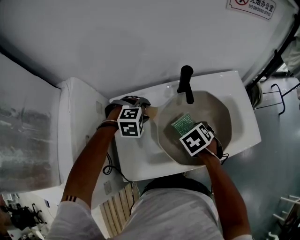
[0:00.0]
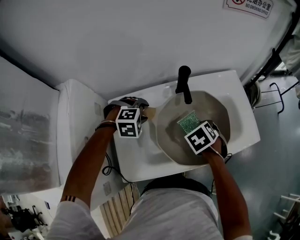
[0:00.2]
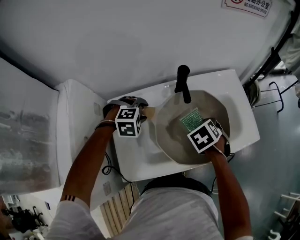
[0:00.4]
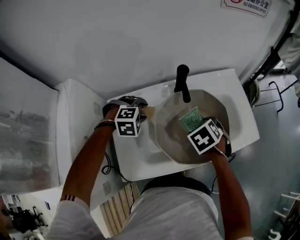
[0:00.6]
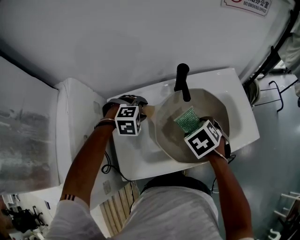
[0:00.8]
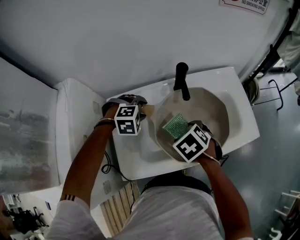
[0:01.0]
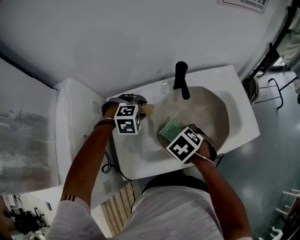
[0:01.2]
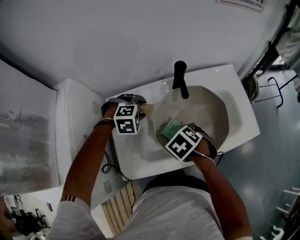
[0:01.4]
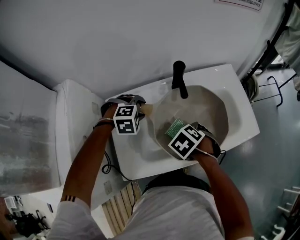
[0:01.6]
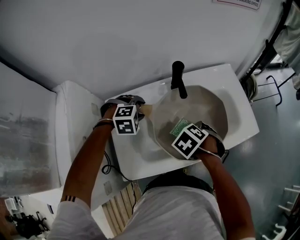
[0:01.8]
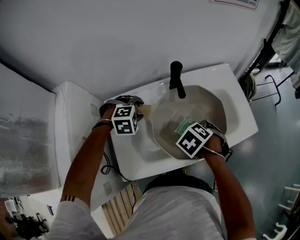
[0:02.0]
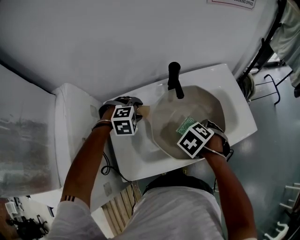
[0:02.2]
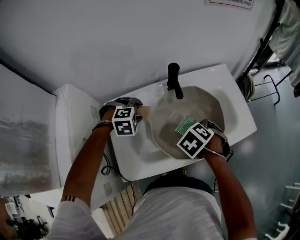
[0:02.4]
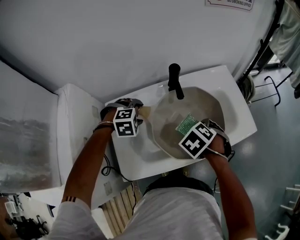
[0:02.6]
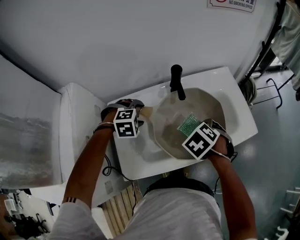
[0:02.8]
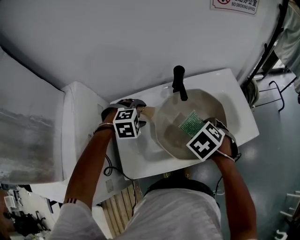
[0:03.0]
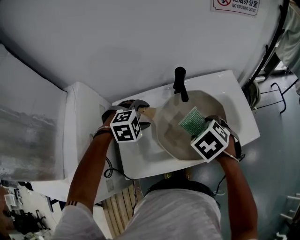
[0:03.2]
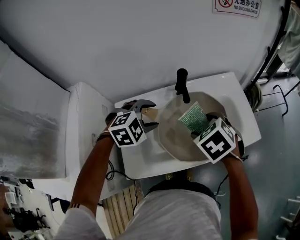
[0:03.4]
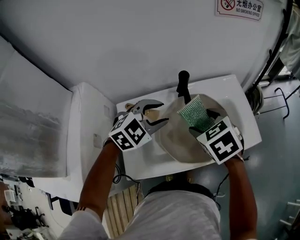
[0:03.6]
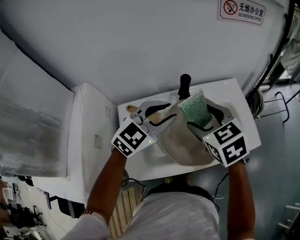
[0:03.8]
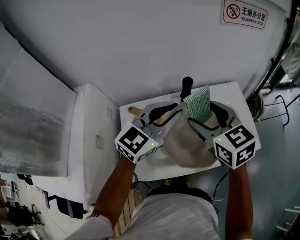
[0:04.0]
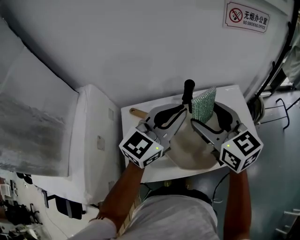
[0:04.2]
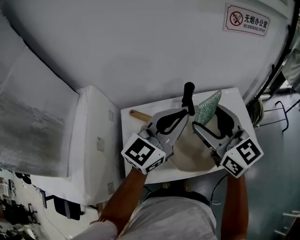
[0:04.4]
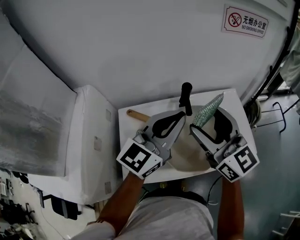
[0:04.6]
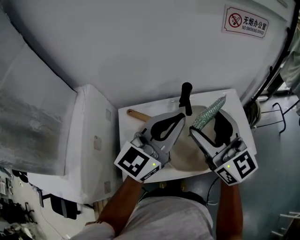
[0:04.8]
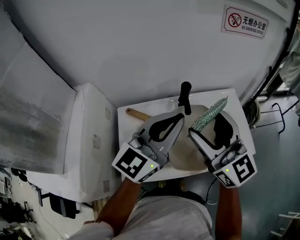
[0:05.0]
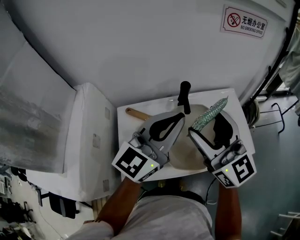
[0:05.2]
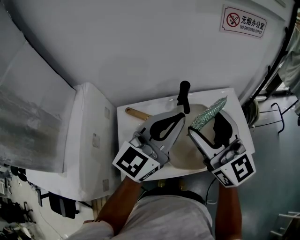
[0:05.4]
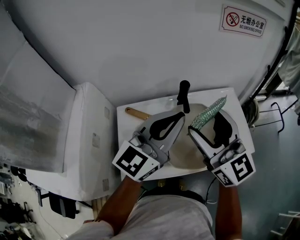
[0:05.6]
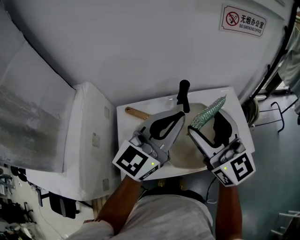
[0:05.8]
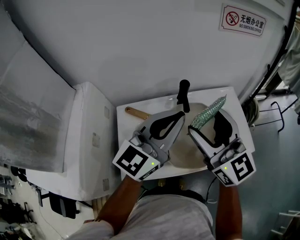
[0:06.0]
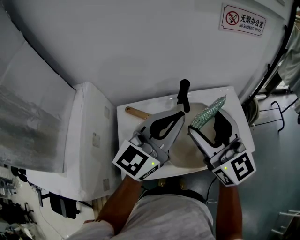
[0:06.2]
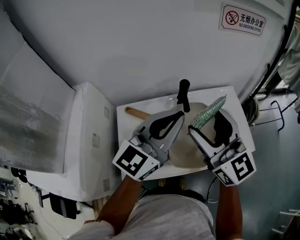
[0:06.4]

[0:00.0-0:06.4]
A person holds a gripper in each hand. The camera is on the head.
0.0 to 1.6 s: There are only small adjustments of the grippers.
1.6 to 3.2 s: The left gripper is displaced upward by some 5 cm. The right gripper goes some 10 cm upward.
3.2 to 4.8 s: The right gripper goes about 20 cm upward, and tips its fingers upward by some 70 degrees. The left gripper is displaced upward and to the right by about 25 cm, tips its fingers upward by approximately 70 degrees, and closes its fingers.
4.8 to 6.4 s: The grippers stay close to where they were, moving slightly.

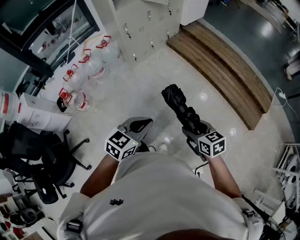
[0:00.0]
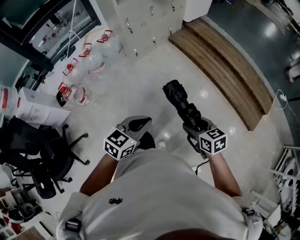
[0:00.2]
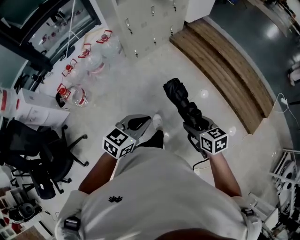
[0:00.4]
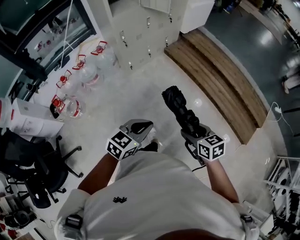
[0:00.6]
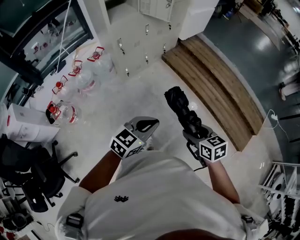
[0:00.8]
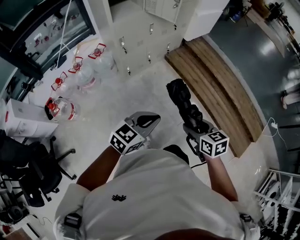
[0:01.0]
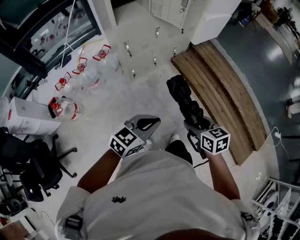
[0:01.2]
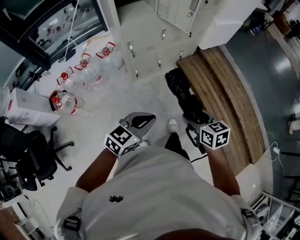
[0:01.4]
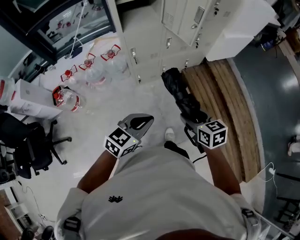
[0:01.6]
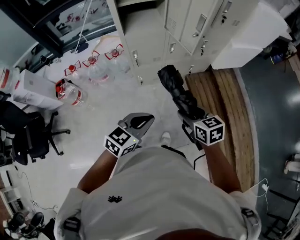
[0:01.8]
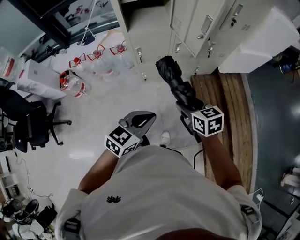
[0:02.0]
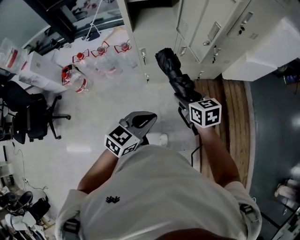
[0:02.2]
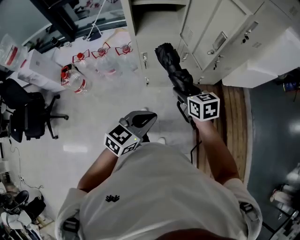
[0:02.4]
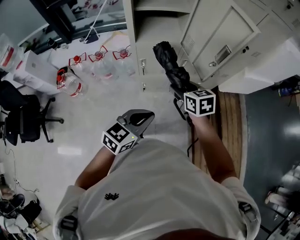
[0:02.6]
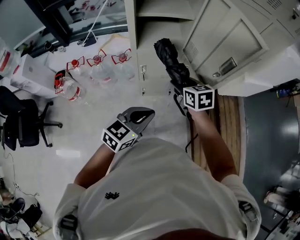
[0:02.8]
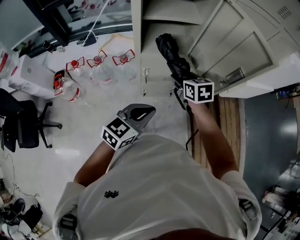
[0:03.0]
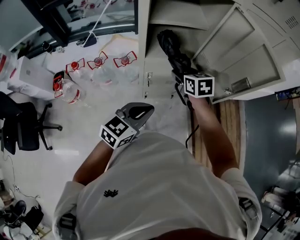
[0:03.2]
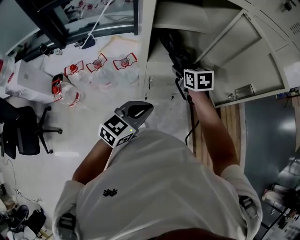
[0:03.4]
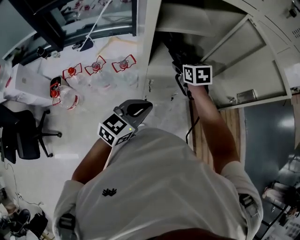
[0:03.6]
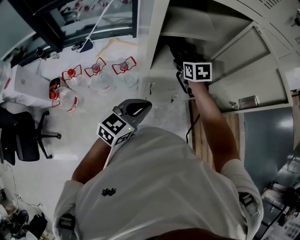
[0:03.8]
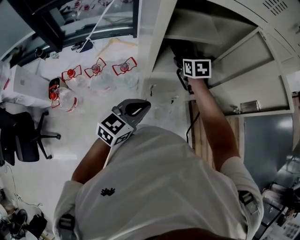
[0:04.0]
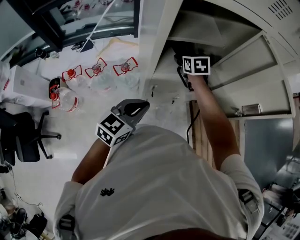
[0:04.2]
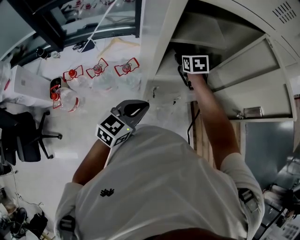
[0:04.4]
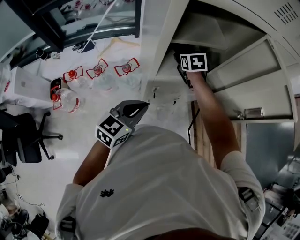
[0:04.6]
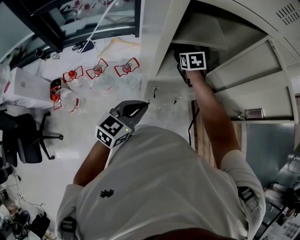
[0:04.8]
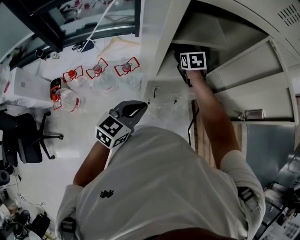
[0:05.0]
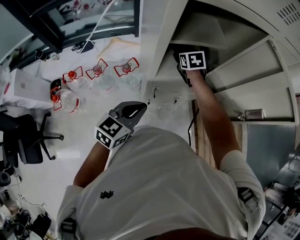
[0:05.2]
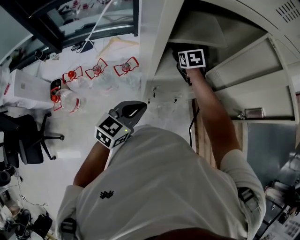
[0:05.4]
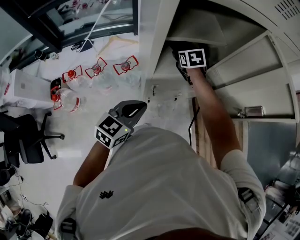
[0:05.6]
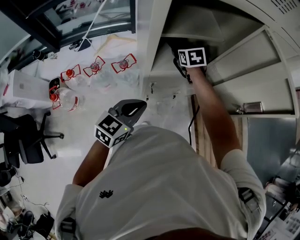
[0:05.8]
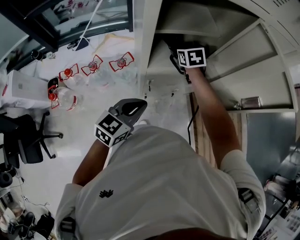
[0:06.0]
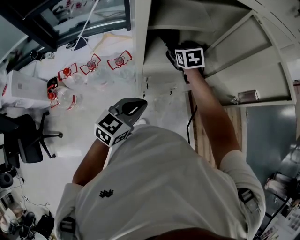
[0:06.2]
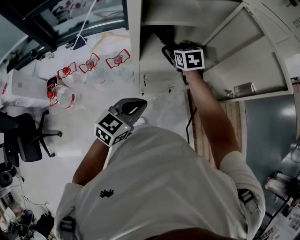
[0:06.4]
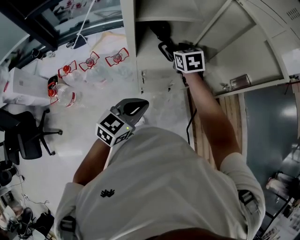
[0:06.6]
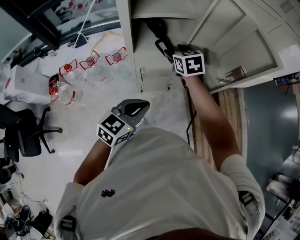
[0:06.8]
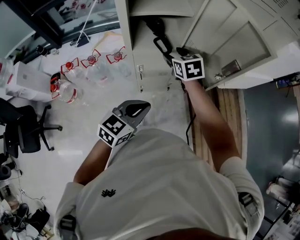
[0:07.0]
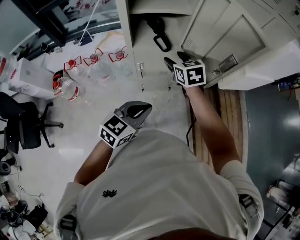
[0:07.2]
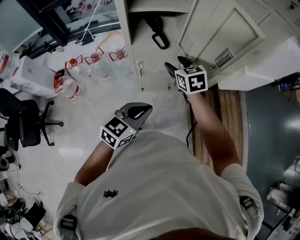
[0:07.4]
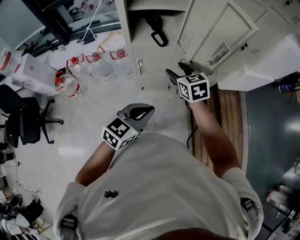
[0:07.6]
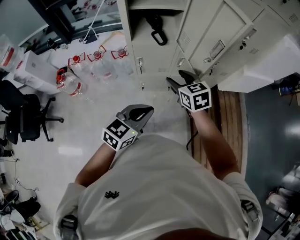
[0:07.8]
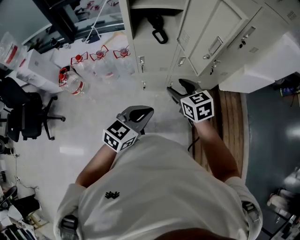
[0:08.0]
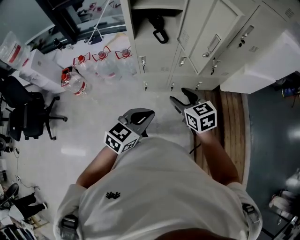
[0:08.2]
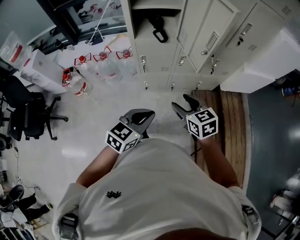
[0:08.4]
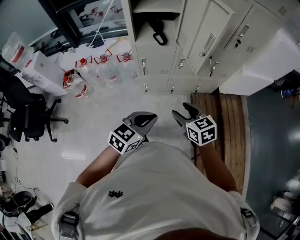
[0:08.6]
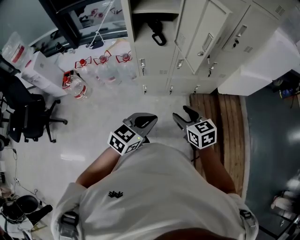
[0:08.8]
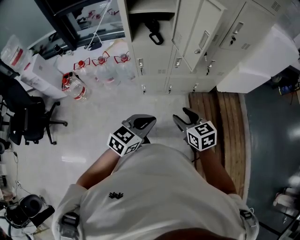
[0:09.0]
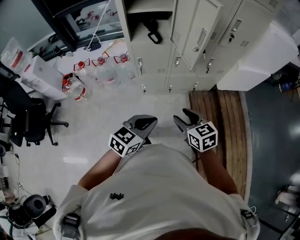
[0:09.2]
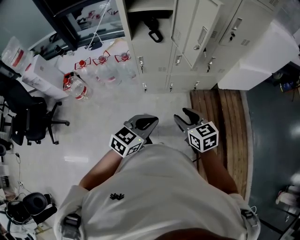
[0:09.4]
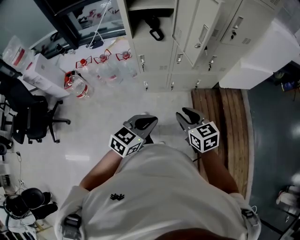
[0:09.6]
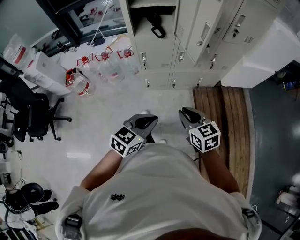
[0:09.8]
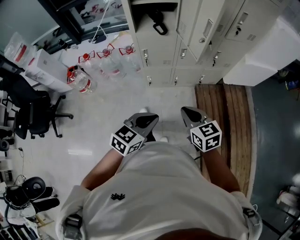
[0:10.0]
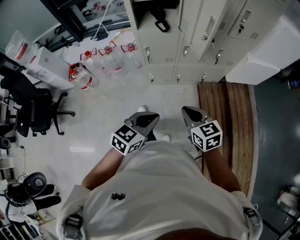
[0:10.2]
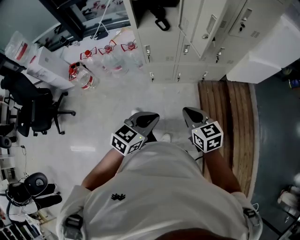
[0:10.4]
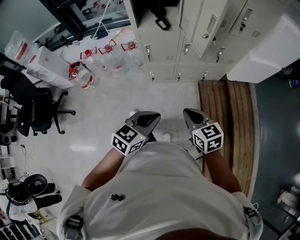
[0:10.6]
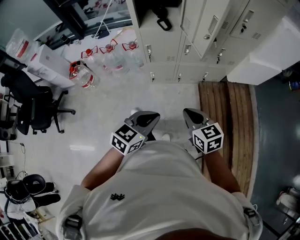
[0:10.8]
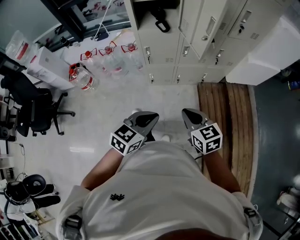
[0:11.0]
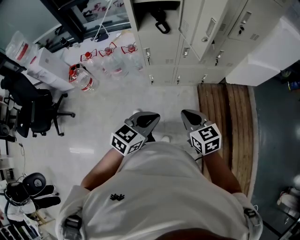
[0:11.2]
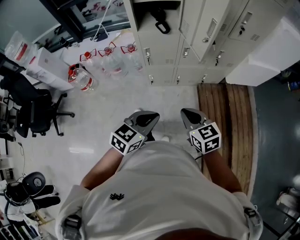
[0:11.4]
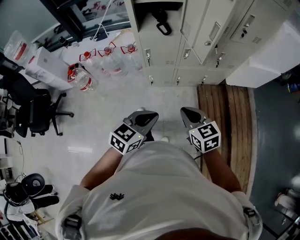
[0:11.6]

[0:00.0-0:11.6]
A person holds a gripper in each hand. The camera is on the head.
0.0 to 1.4 s: Both grippers move forward, approximately 40 cm.
1.4 to 2.8 s: The right gripper shifts approximately 40 cm forward, and swivels some 20 degrees. The left gripper heads forward, covering approximately 25 cm, and swivels approximately 20 degrees.
2.8 to 4.4 s: The right gripper shifts some 30 cm forward and to the left; the left gripper travels to the left and forward by approximately 25 cm.
4.4 to 5.8 s: The grippers stay close to where they were, moving slightly.
5.8 to 7.2 s: The left gripper heads to the right and backward, covering roughly 20 cm; the right gripper shifts about 20 cm backward and to the right.
7.2 to 8.8 s: The left gripper is displaced backward and to the right by approximately 15 cm; the right gripper heads backward, covering approximately 30 cm.
8.8 to 10.2 s: The left gripper ends up about 5 cm from where it was. Meanwhile the right gripper heads backward, covering some 5 cm, and closes.
10.2 to 11.6 s: The grippers stay close to where they were, moving slightly.

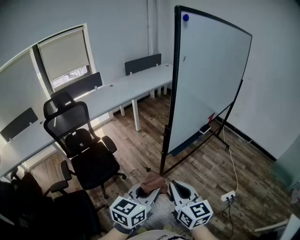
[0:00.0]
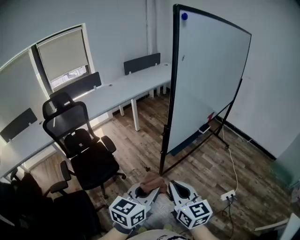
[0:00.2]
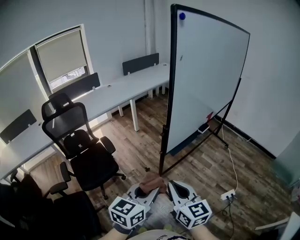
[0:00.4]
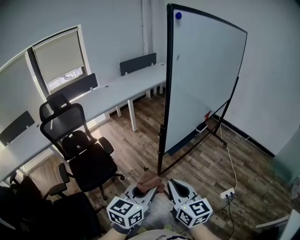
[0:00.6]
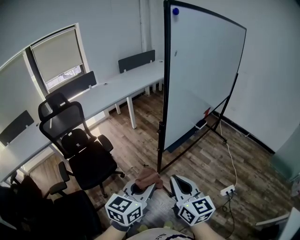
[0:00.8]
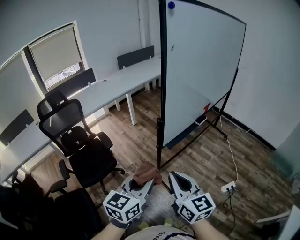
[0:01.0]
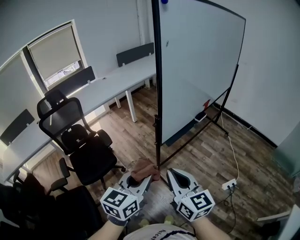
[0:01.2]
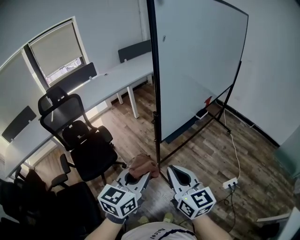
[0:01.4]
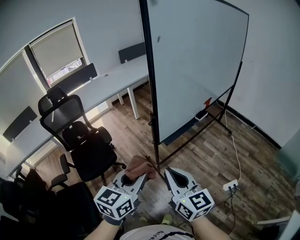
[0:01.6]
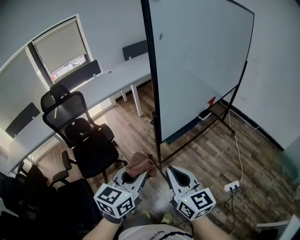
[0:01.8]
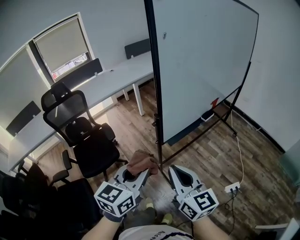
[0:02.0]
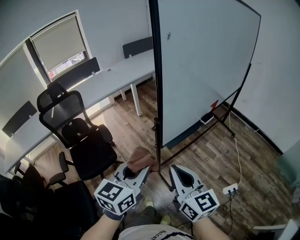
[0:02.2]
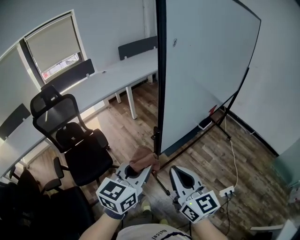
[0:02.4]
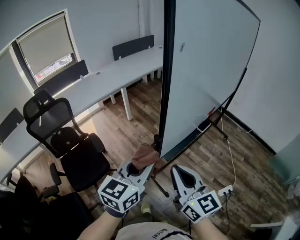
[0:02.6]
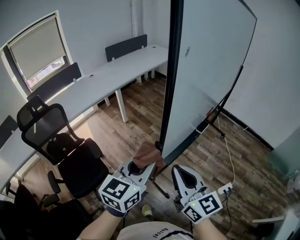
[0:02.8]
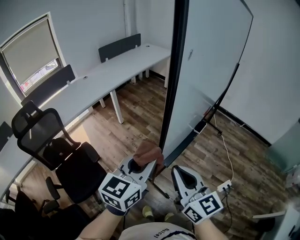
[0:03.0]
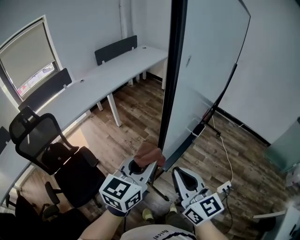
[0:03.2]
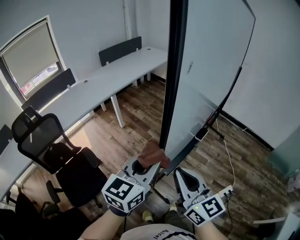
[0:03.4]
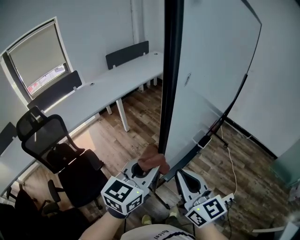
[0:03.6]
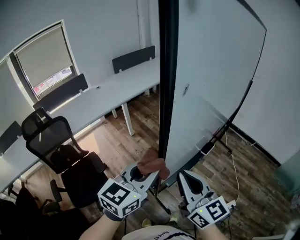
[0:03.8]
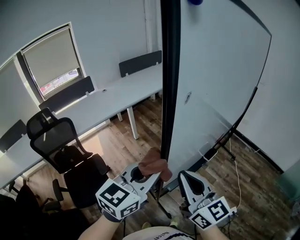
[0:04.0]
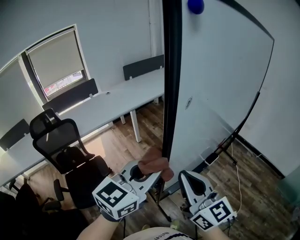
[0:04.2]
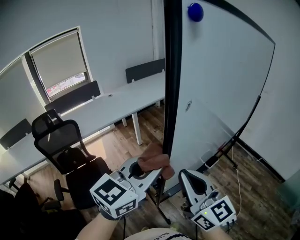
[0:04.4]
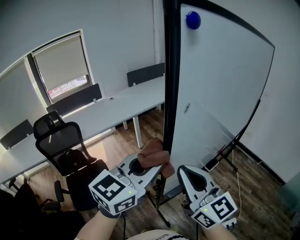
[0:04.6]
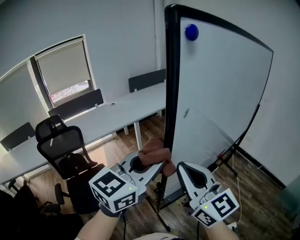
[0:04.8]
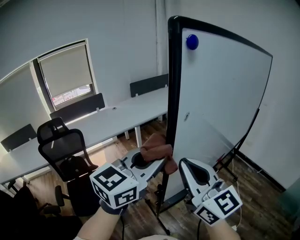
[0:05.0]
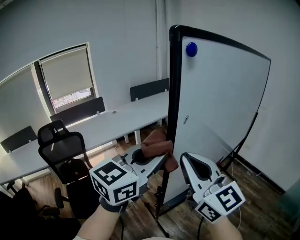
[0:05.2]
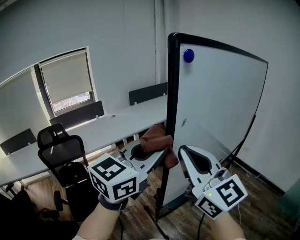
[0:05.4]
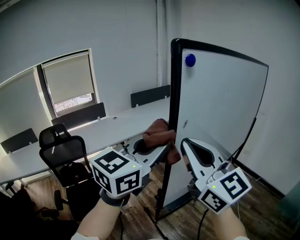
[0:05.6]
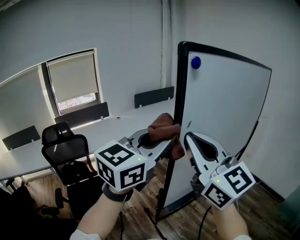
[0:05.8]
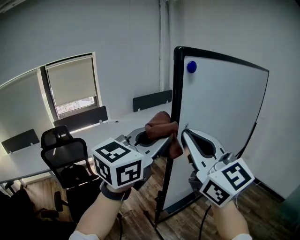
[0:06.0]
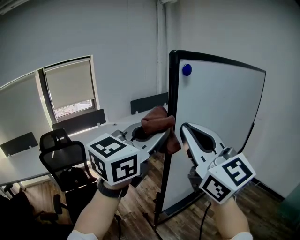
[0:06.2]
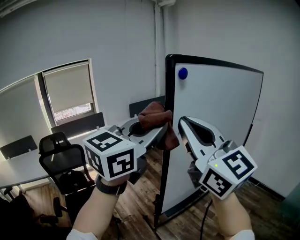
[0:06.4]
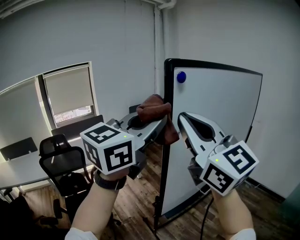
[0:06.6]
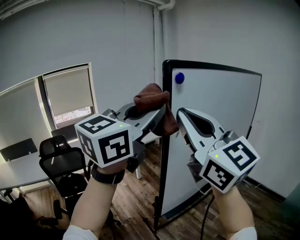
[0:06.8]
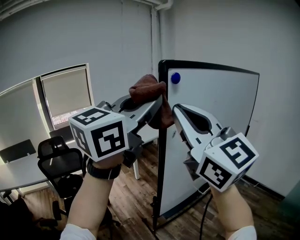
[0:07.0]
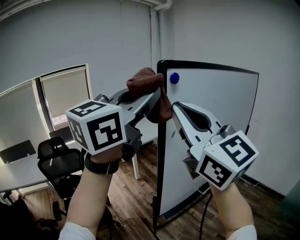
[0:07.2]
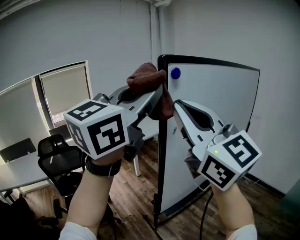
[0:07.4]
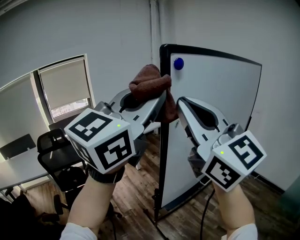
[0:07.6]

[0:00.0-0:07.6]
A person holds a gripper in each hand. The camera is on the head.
0.0 to 1.6 s: The right gripper shifts roughly 5 cm to the right. The left gripper moves some 5 cm.
1.6 to 3.0 s: Both grippers move forward, some 20 cm.
3.0 to 4.6 s: The right gripper moves upward and forward, approximately 15 cm, and turns by some 20 degrees; the left gripper shifts approximately 15 cm upward.
4.6 to 6.0 s: Both grippers move upward, about 15 cm.
6.0 to 7.6 s: The two grippers go some 10 cm upward.
